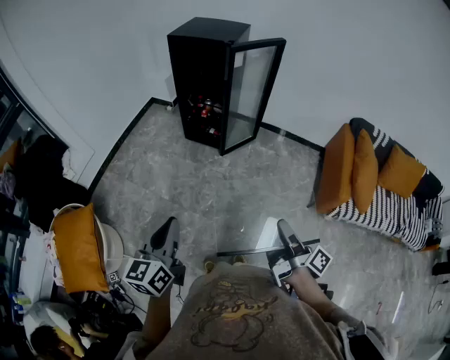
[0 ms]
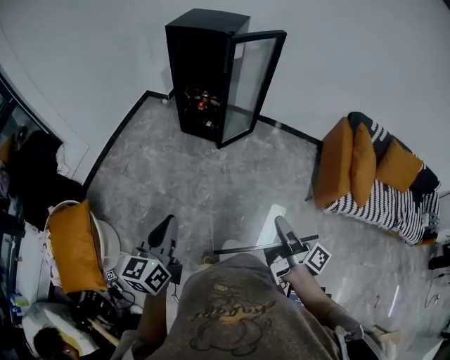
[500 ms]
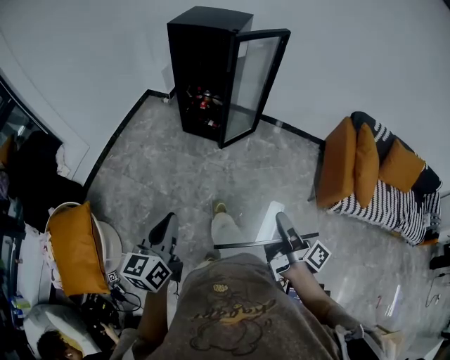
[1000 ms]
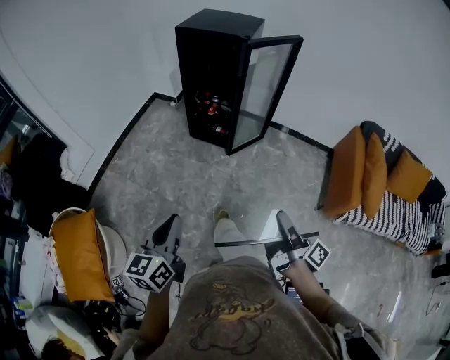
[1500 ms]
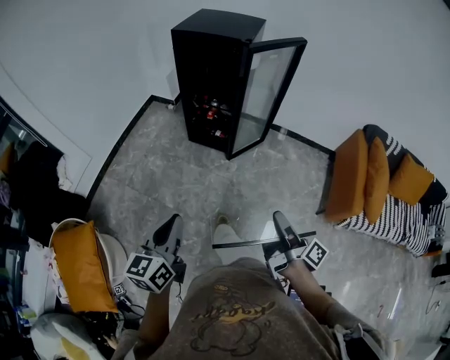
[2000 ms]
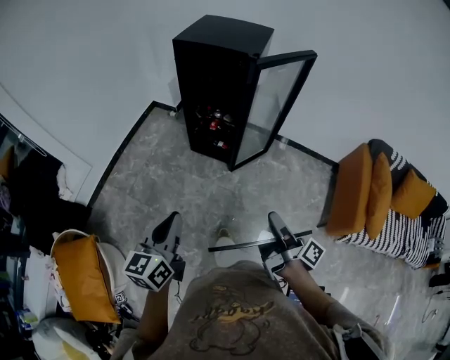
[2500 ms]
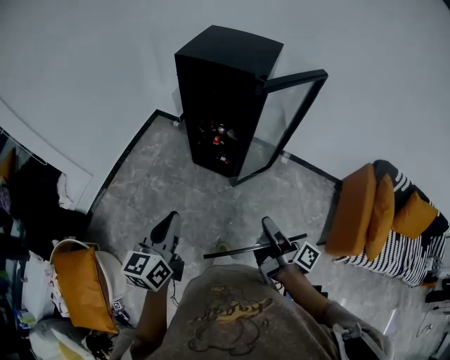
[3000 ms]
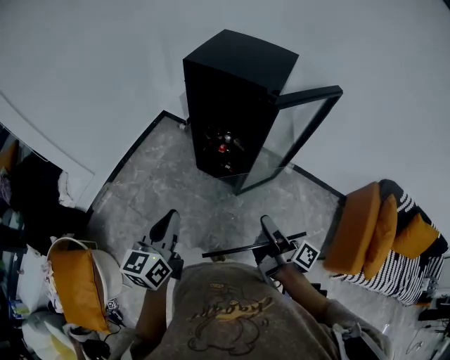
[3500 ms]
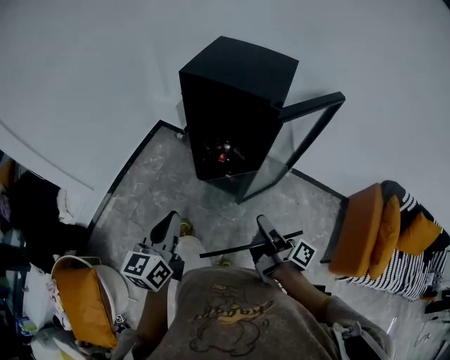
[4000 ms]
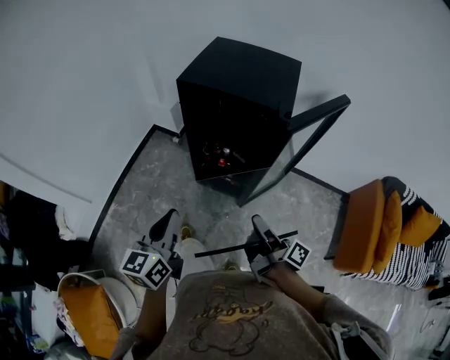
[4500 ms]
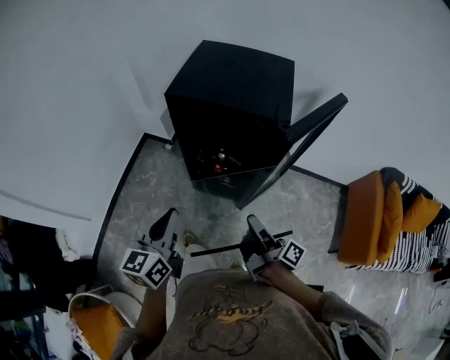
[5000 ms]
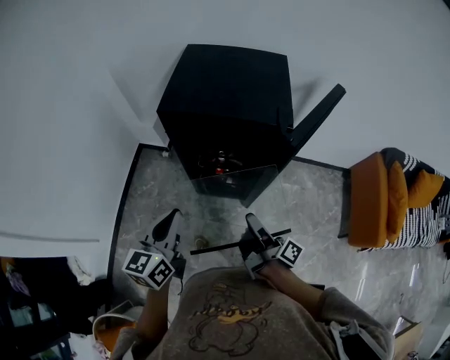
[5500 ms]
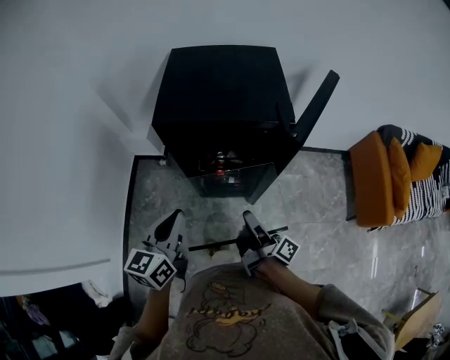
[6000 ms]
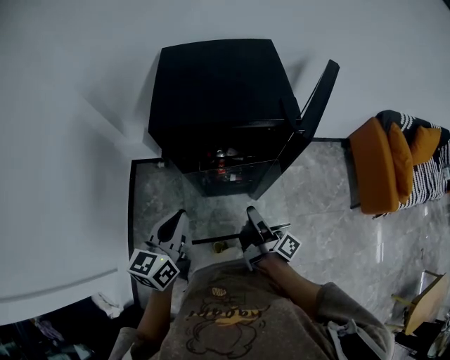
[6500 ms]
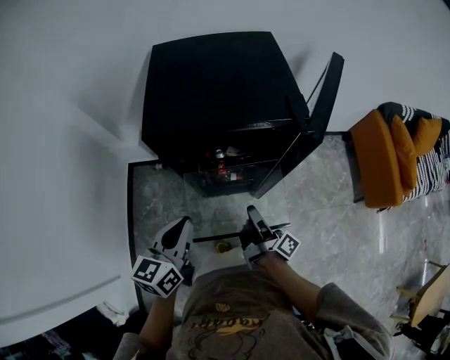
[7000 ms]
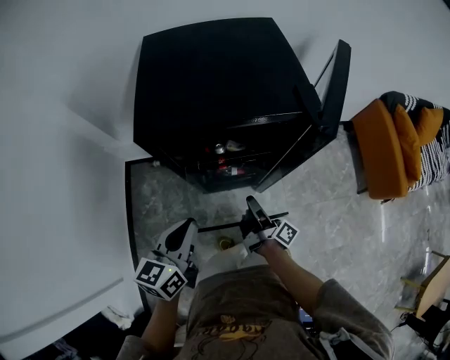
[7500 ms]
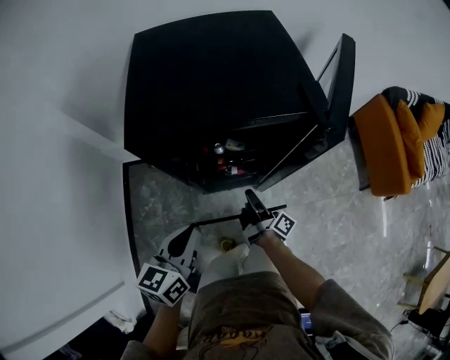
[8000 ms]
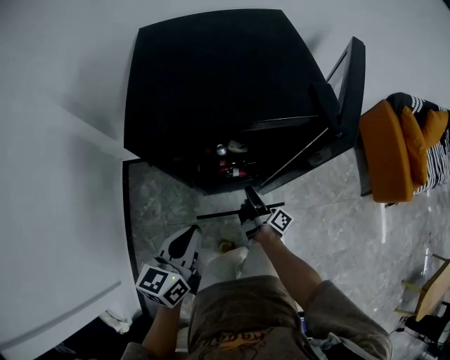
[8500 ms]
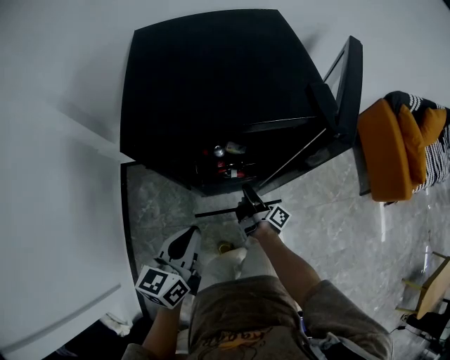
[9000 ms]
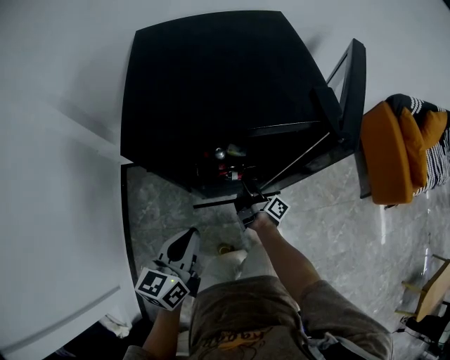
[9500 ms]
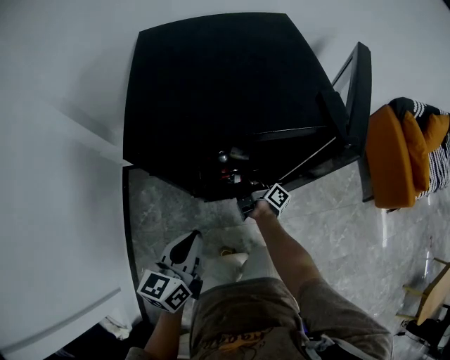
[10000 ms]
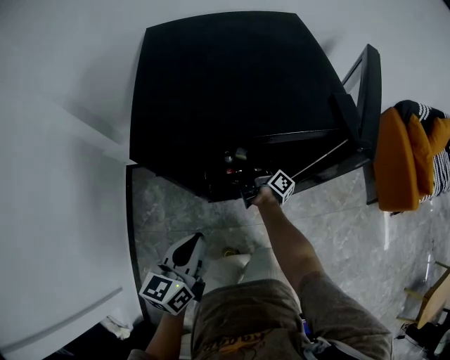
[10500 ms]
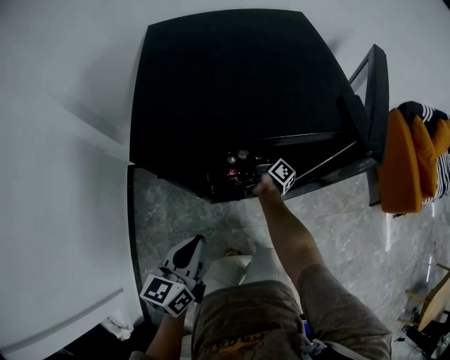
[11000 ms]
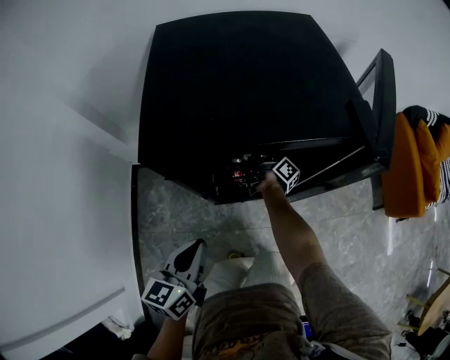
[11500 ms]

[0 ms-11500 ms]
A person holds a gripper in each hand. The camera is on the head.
0 ms to 2000 ms: The left gripper moves approximately 15 cm.
2000 ms to 4000 ms: The left gripper shifts by some 30 cm.
4000 ms to 6000 ms: The left gripper shifts by some 25 cm, and rotates approximately 30 degrees.
6000 ms to 7500 ms: The left gripper goes approximately 10 cm downward.
7500 ms to 9500 ms: The left gripper moves about 5 cm.

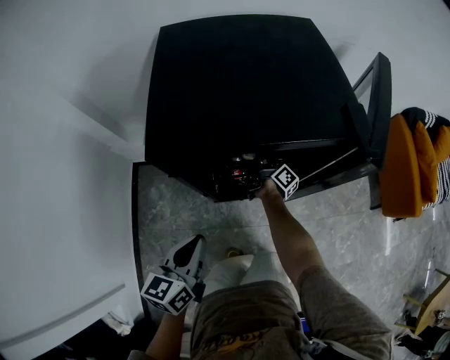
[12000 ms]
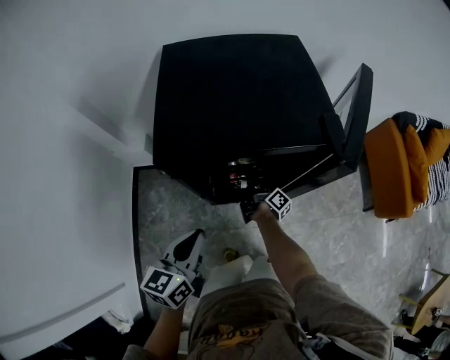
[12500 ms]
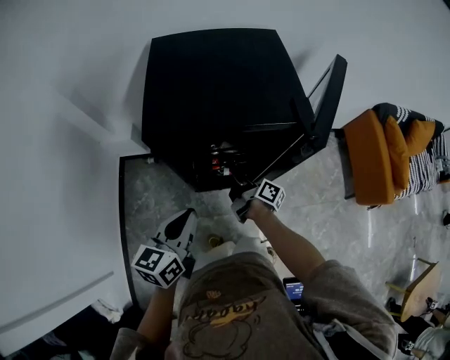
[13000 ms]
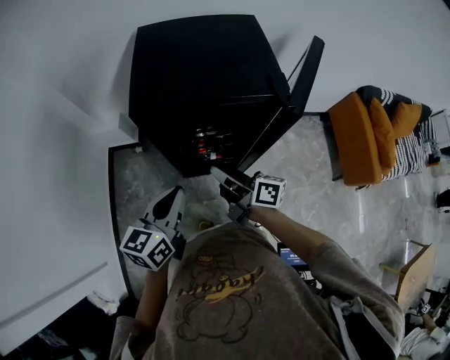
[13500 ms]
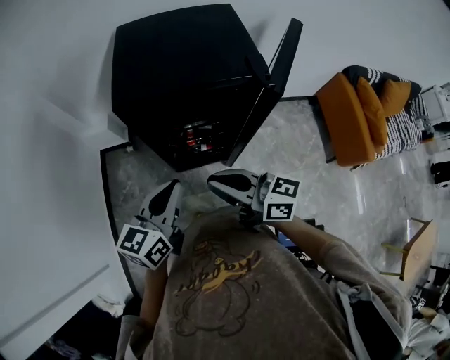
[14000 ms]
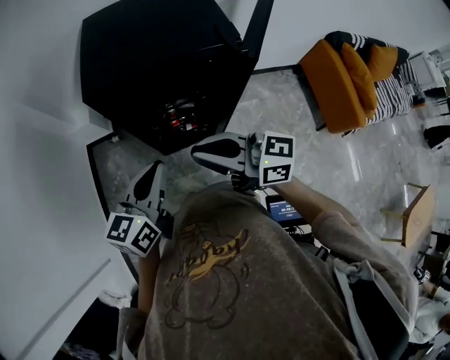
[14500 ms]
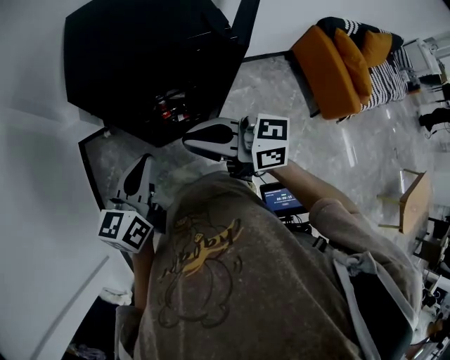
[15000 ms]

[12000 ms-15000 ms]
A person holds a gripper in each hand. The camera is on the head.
12000 ms to 13500 ms: The left gripper shifts about 10 cm upward.

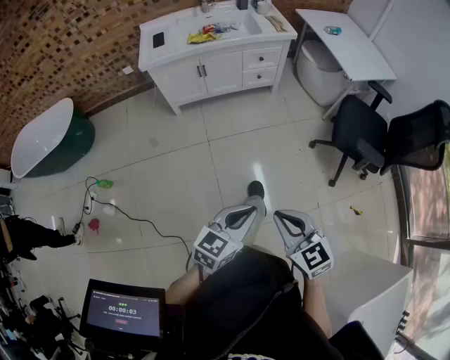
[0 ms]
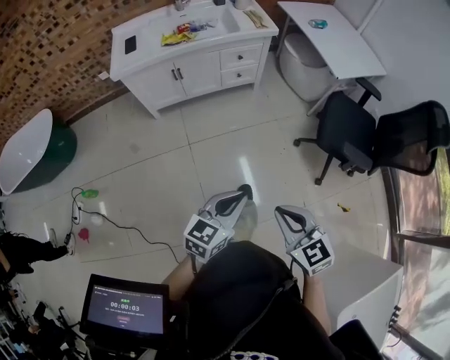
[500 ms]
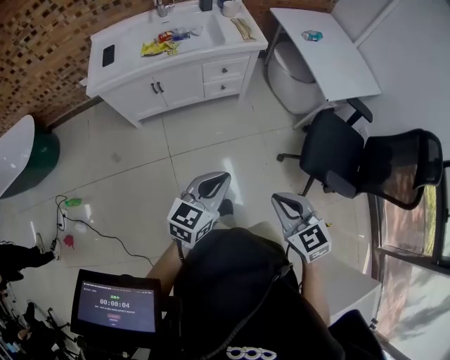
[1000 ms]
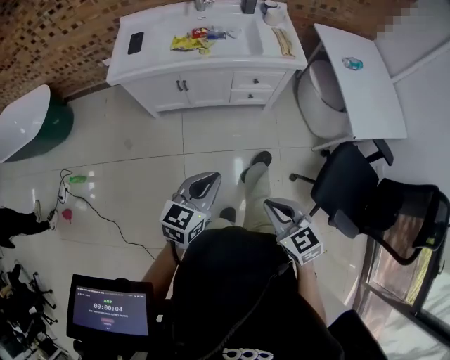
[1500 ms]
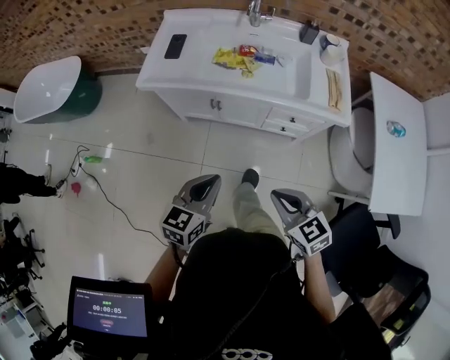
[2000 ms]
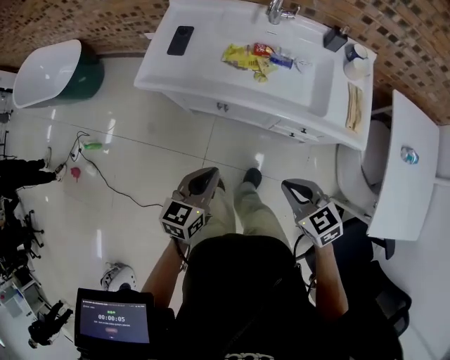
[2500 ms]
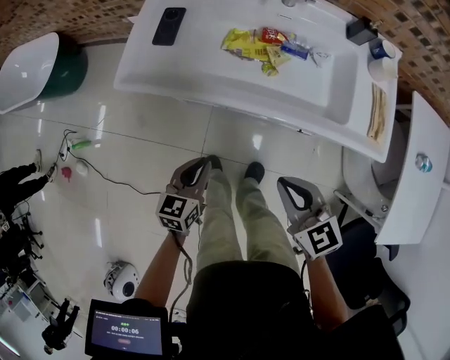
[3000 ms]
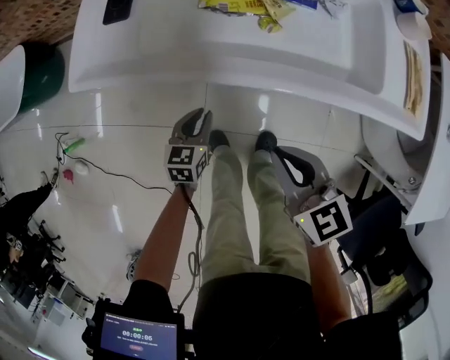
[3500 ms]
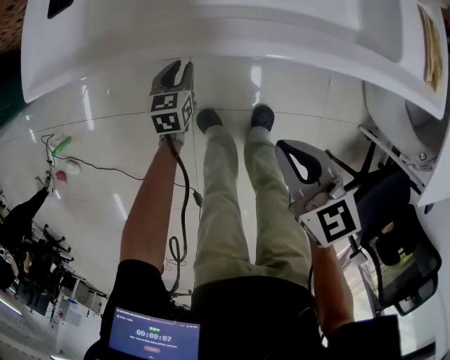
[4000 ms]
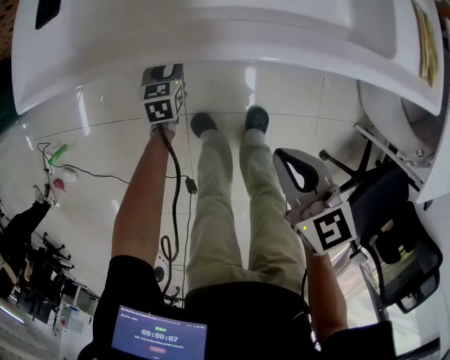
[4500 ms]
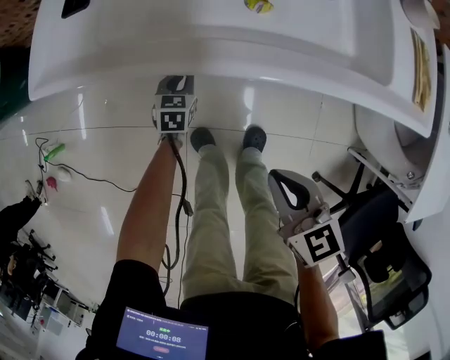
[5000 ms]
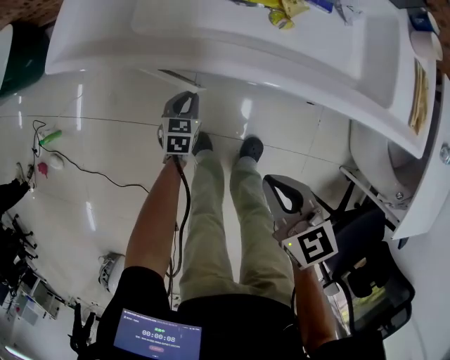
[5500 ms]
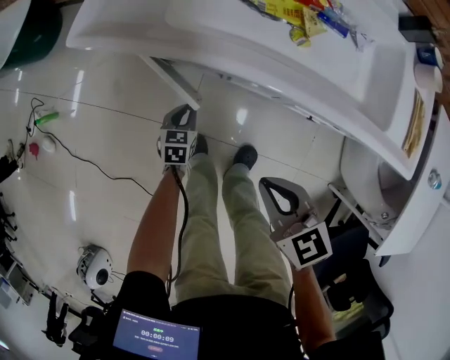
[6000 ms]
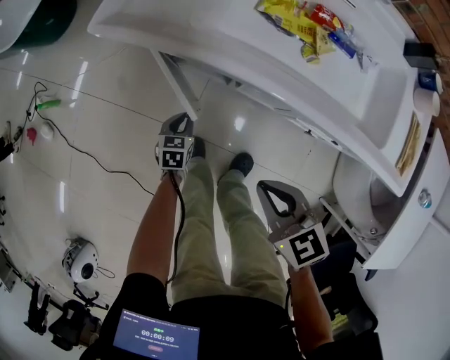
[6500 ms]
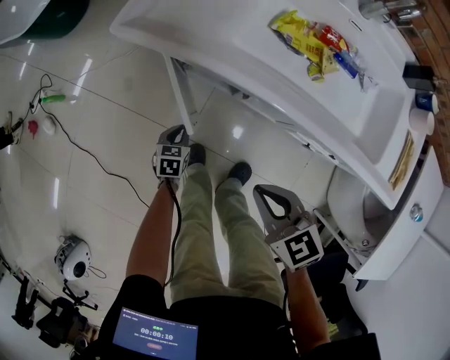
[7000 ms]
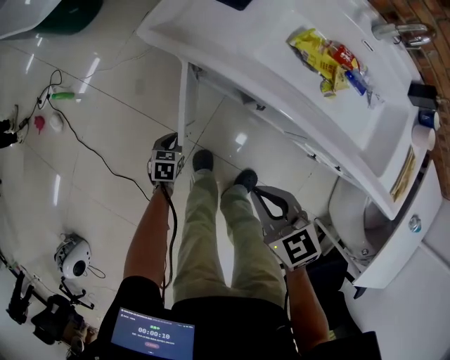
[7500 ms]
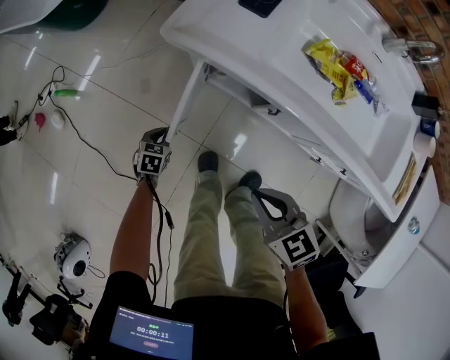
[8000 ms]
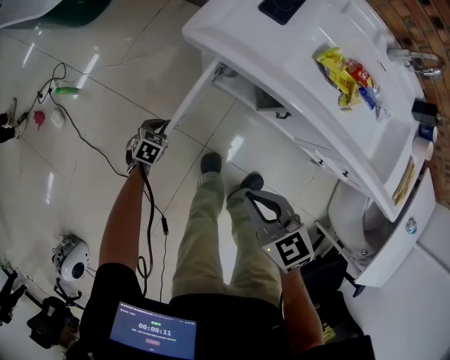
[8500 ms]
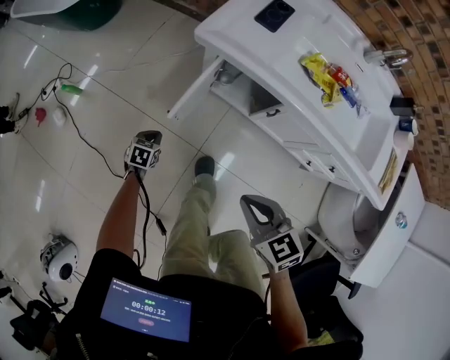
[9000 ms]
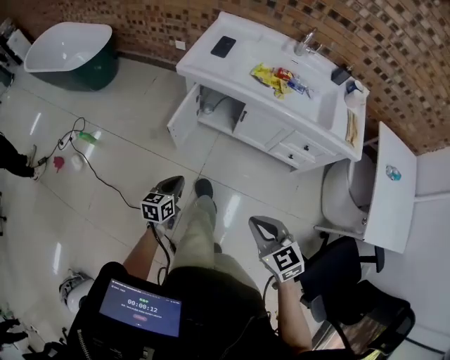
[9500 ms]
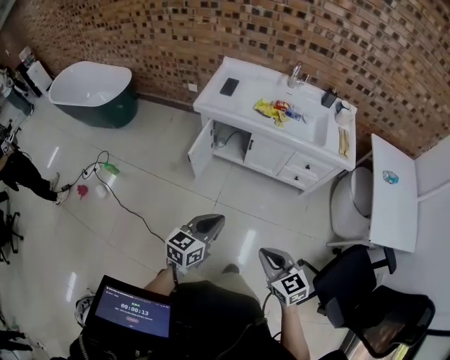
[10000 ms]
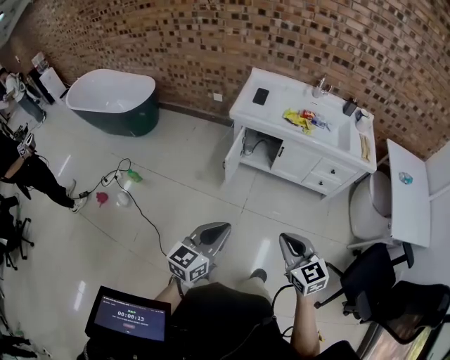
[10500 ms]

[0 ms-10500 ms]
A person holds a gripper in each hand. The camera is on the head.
0 ms to 2000 ms: The two grippers travel together, some 60 cm. The left gripper turns by some 40 degrees. Meanwhile the right gripper changes its angle by about 30 degrees.
2000 ms to 4000 ms: The right gripper moves forward and downward, roughly 30 cm. Meanwhile the left gripper moves downward and forward, some 60 cm, turns by about 20 degrees, and opens.
4000 ms to 6500 ms: The left gripper travels to the left and backward by approximately 15 cm. The right gripper shifts about 5 cm to the left, and changes its angle by approximately 30 degrees.
6500 ms to 8500 ms: Both grippers move to the left, roughly 20 cm.
8500 ms to 10500 ms: The two grippers travel together, backward, roughly 40 cm. The left gripper goes about 60 cm upward, and angles its fingers upward, by roughly 50 degrees. The right gripper goes some 25 cm upward, and rotates roughly 30 degrees.

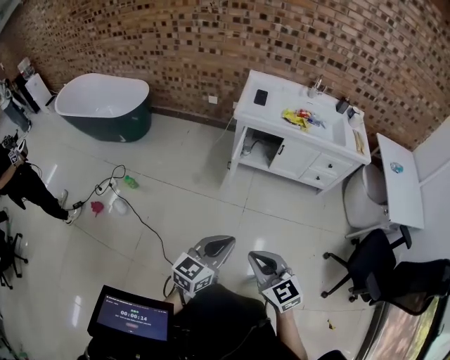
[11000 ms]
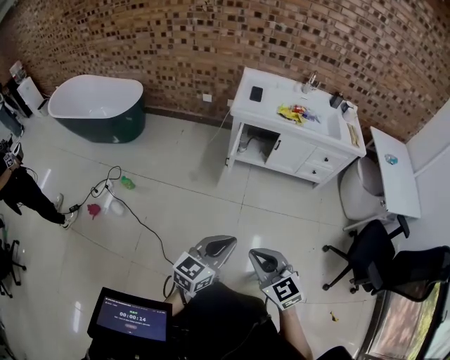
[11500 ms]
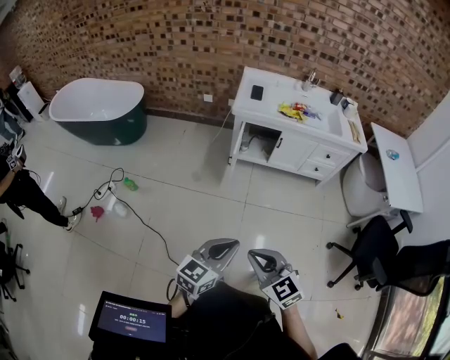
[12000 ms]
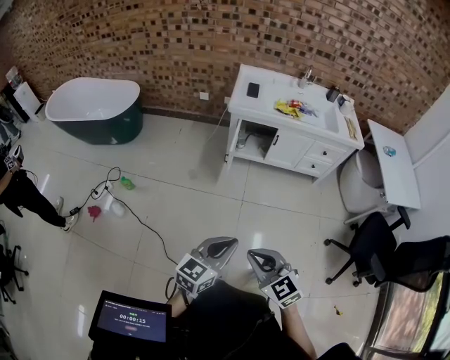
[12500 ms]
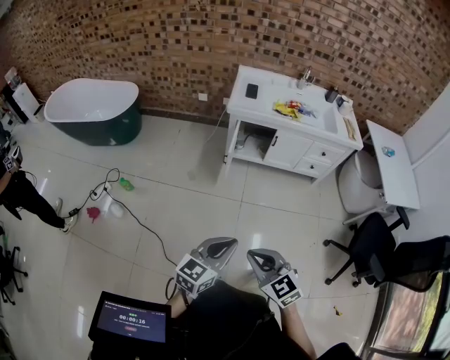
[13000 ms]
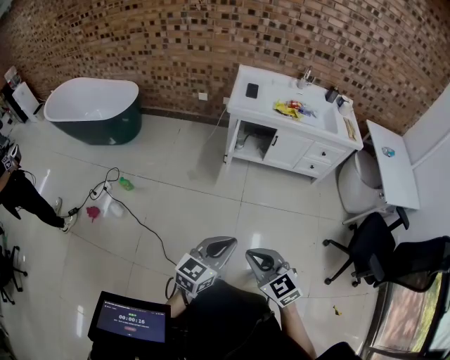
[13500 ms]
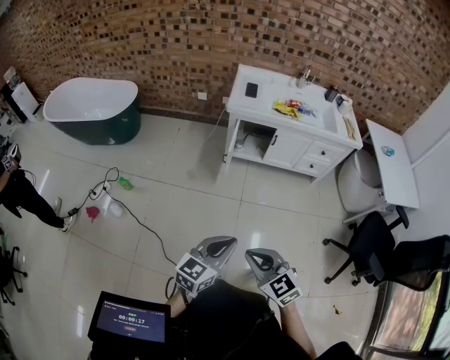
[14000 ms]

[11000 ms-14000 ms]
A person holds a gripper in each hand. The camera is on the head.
11000 ms to 12500 ms: The right gripper ends up roughly 5 cm from where it was; the left gripper ends up about 5 cm from where it was.
12500 ms to 14000 ms: The two grippers keep their place.
